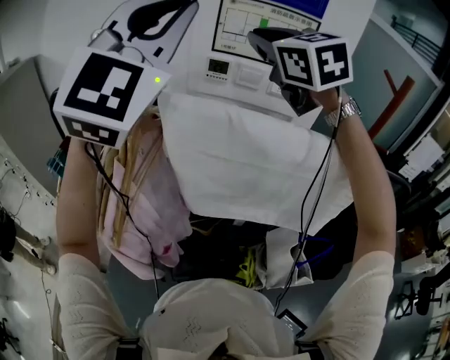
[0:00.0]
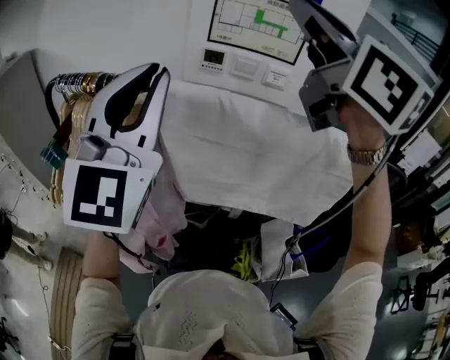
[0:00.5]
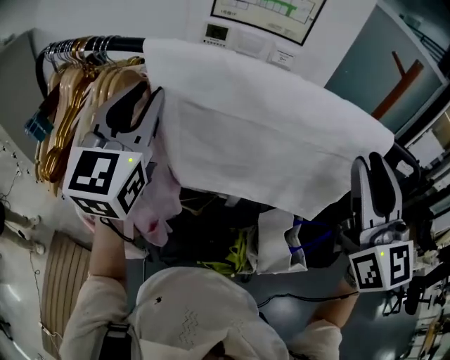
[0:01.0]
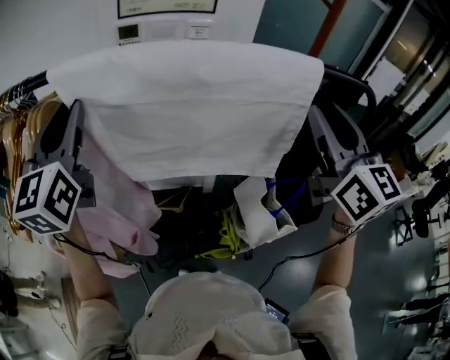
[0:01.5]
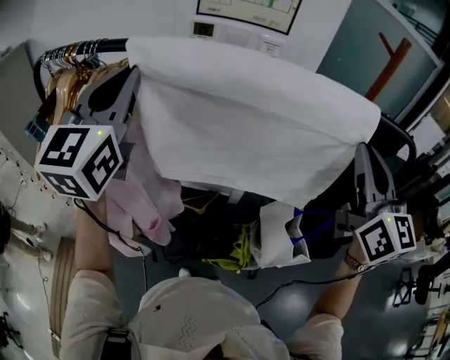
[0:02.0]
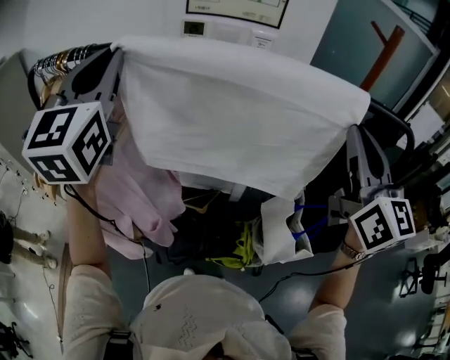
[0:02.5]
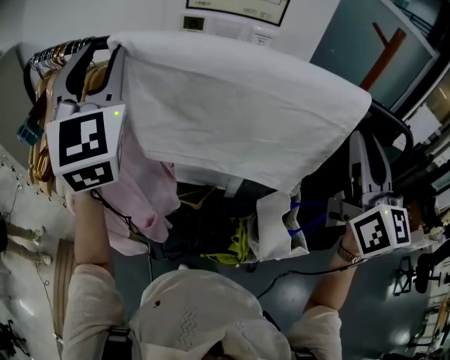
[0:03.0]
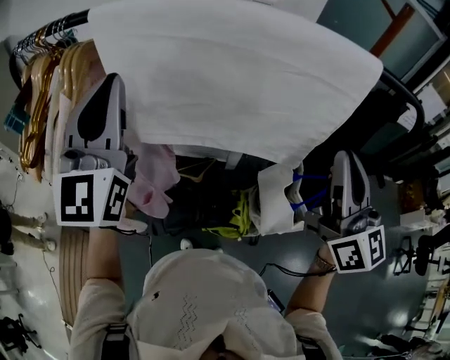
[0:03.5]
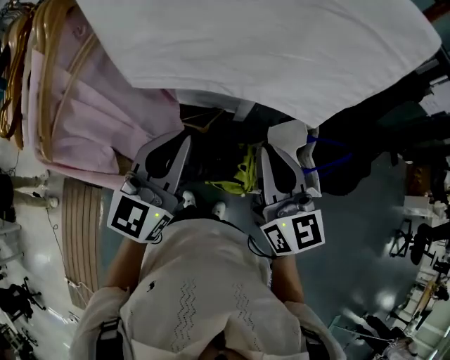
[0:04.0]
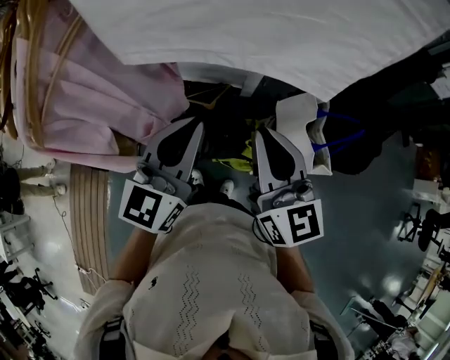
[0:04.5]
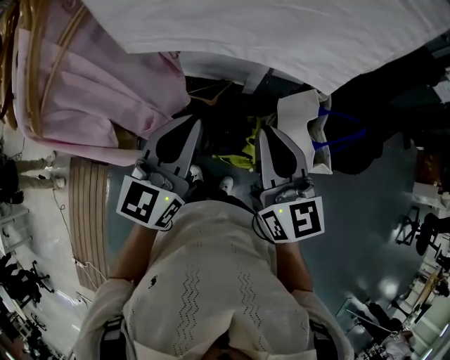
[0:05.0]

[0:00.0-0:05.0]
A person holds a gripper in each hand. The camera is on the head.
0:00.0 to 0:02.5: The right gripper shifts roughly 35 cm to the right, backward and downward, changes its angle by roughly 40 degrees, and opens, then closes once more, while the left gripper travels downward by roughly 15 cm, and swivels approximately 30 degrees.
0:02.5 to 0:05.0: The right gripper moves downward, roughly 30 cm, and turns by approximately 20 degrees; the left gripper shifts some 40 cm downward, to the right and backward, turns by approximately 40 degrees, and opens, then closes once more.

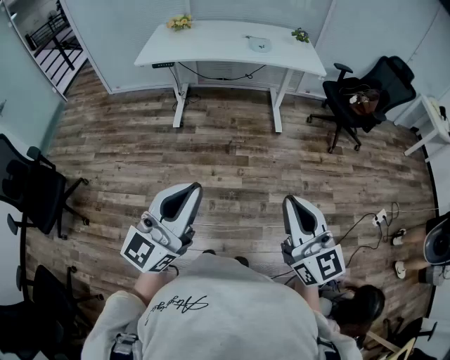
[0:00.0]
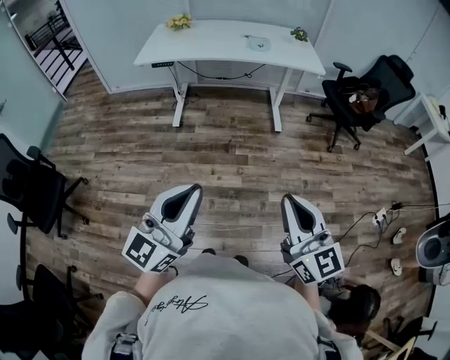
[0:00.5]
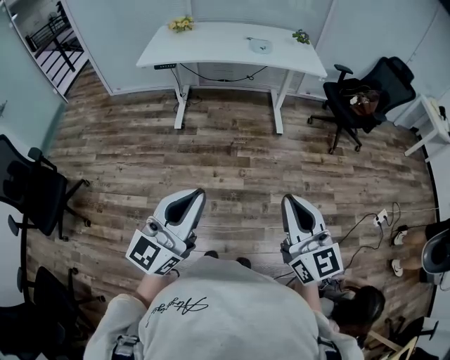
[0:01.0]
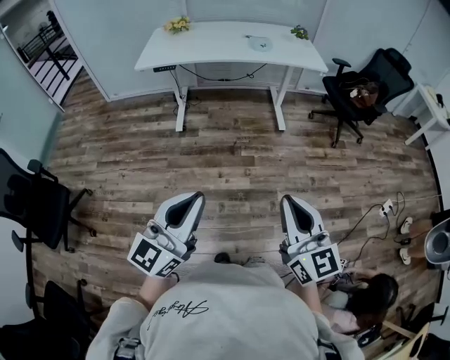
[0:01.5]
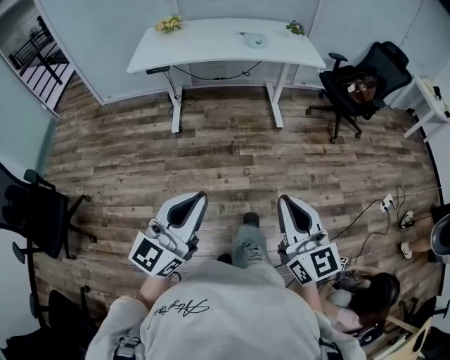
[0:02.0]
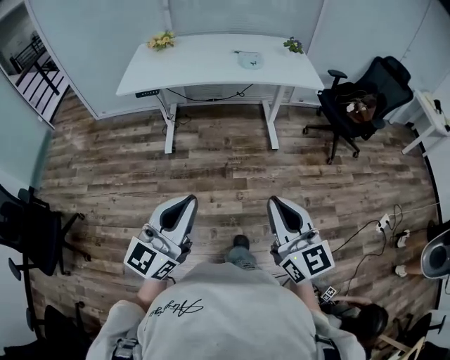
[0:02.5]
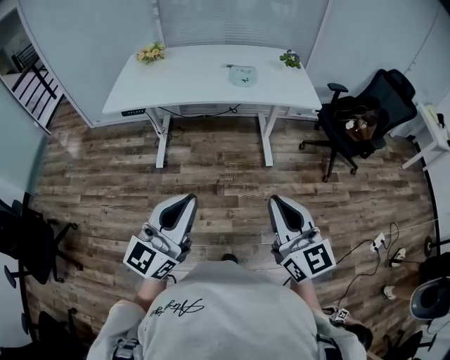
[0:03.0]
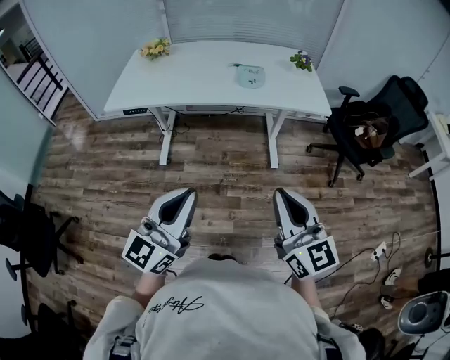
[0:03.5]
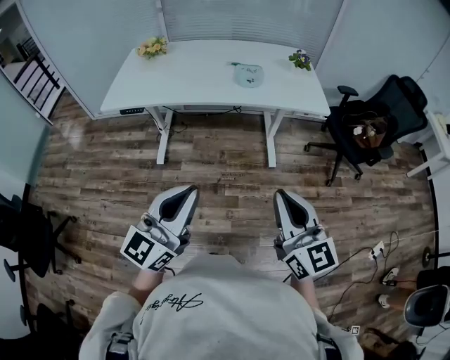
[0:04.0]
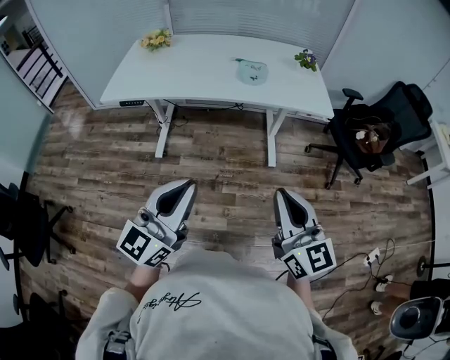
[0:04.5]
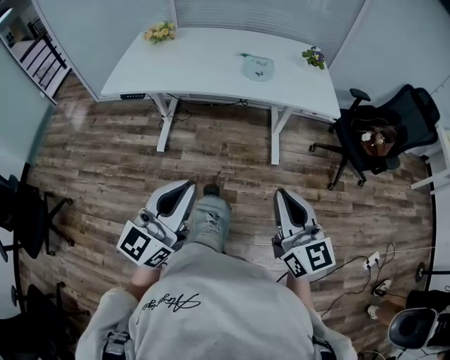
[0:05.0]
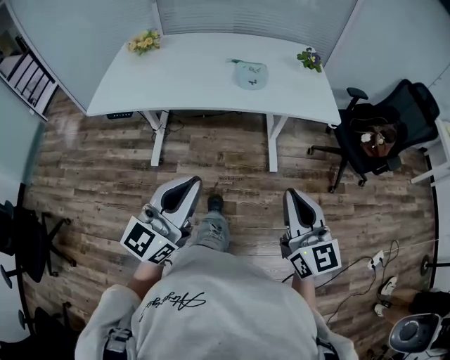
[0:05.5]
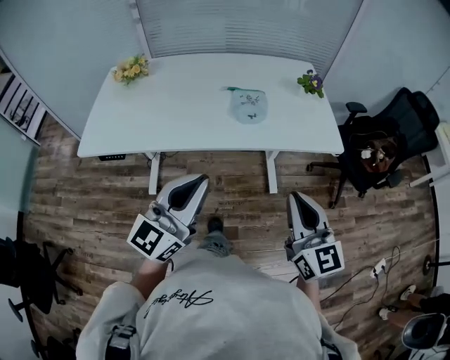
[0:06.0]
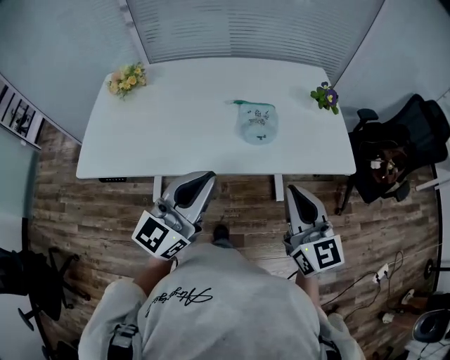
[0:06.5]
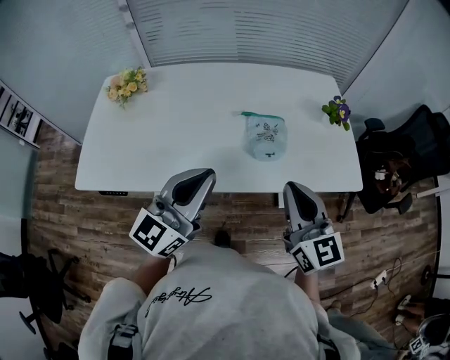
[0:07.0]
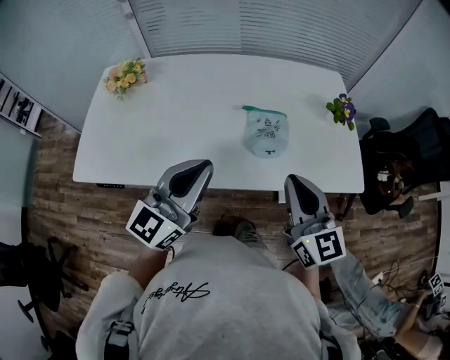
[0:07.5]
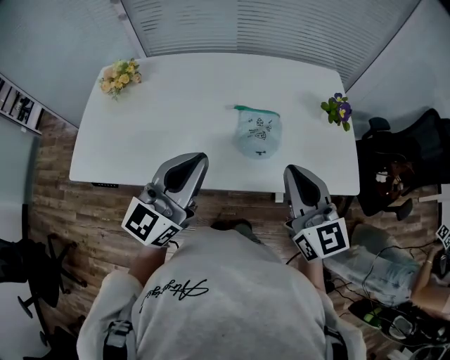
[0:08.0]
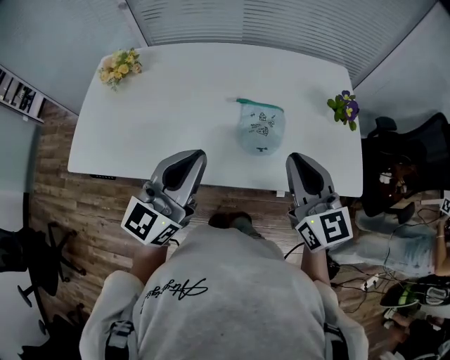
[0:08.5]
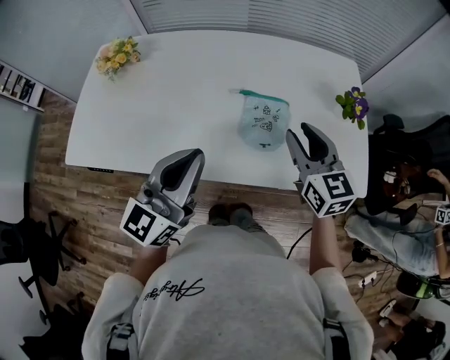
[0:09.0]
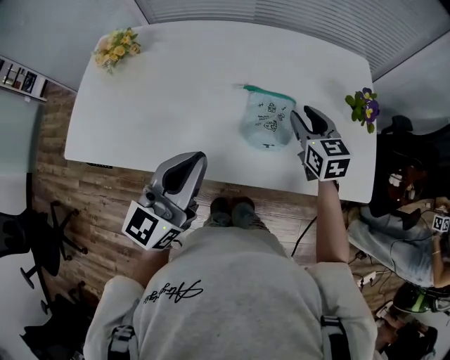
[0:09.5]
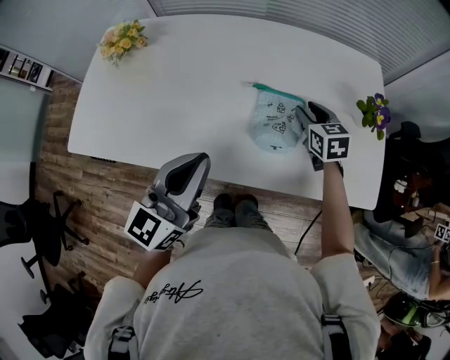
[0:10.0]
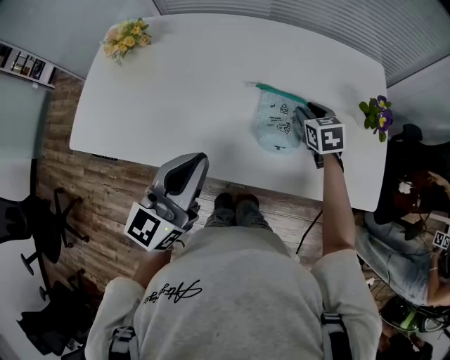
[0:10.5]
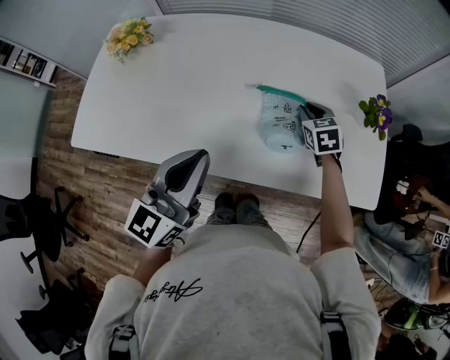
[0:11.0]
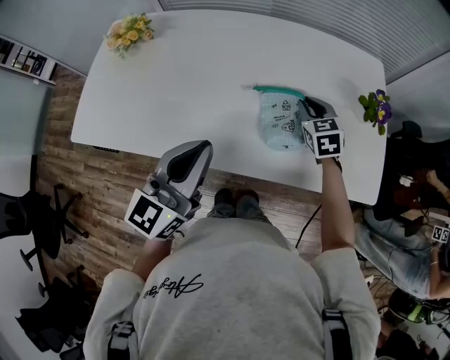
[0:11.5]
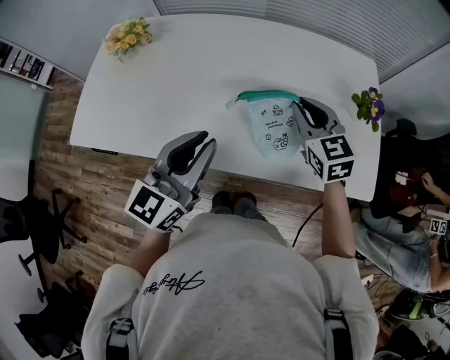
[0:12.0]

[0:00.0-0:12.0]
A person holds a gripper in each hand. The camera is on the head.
0:00.0 to 0:02.0: Both grippers move to the left, approximately 5 cm.
0:02.0 to 0:04.0: The grippers both shift forward by approximately 35 cm.
0:04.0 to 0:06.0: Both grippers travel together forward, some 25 cm.
0:06.0 to 0:08.0: Both grippers travel together forward, roughly 25 cm.
0:08.0 to 0:10.0: The right gripper goes some 30 cm forward and downward, tips its fingers downward by roughly 30 degrees, and opens its fingers, while the left gripper moves downward, about 5 cm.
0:10.0 to 0:12.0: The right gripper goes roughly 15 cm upward and backward, and closes.

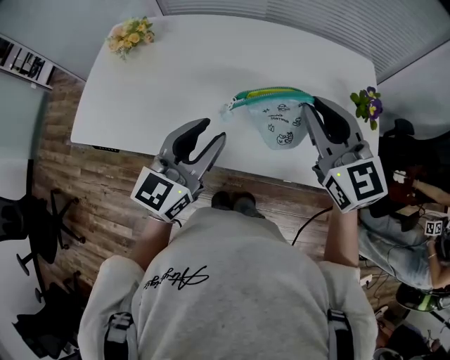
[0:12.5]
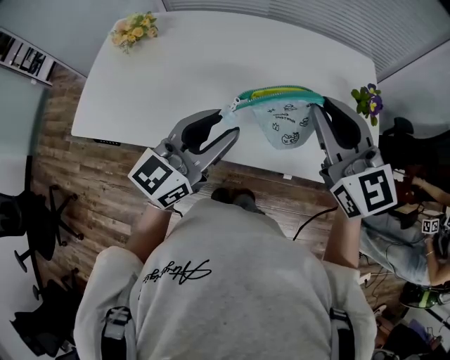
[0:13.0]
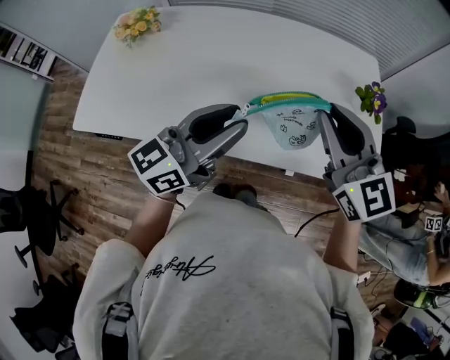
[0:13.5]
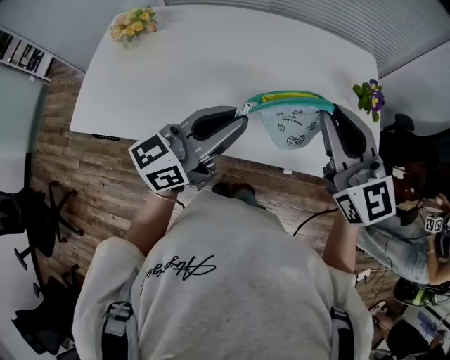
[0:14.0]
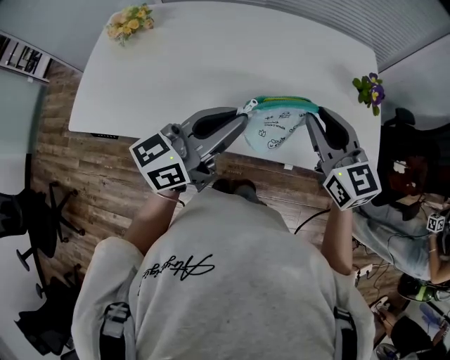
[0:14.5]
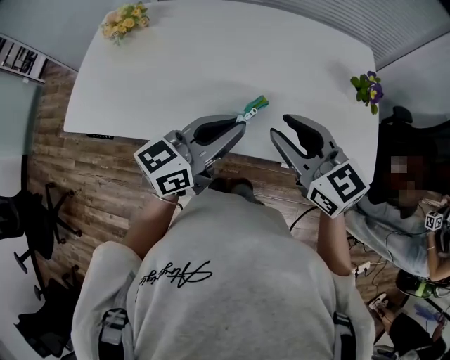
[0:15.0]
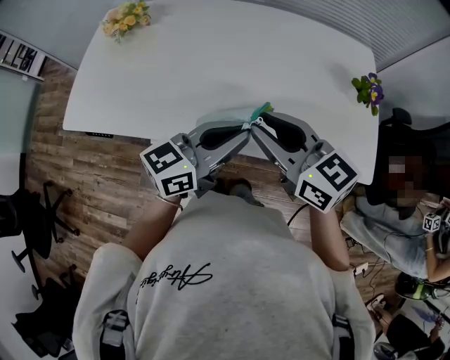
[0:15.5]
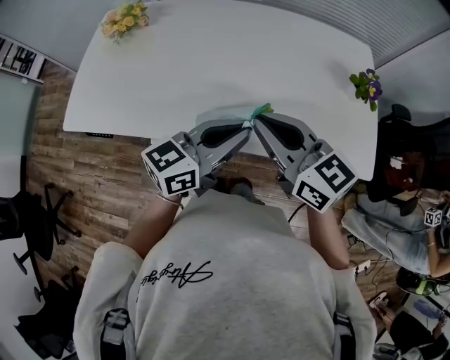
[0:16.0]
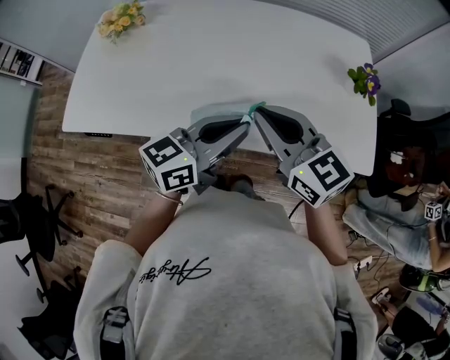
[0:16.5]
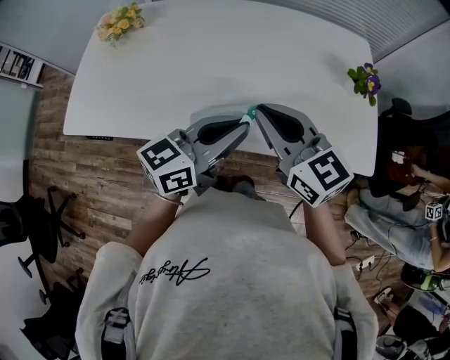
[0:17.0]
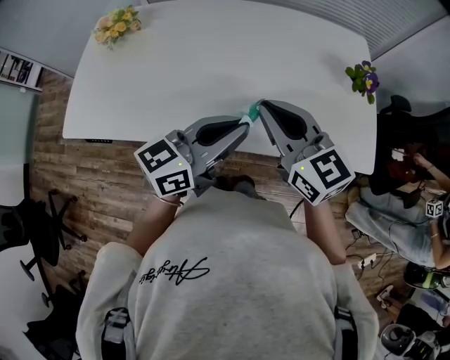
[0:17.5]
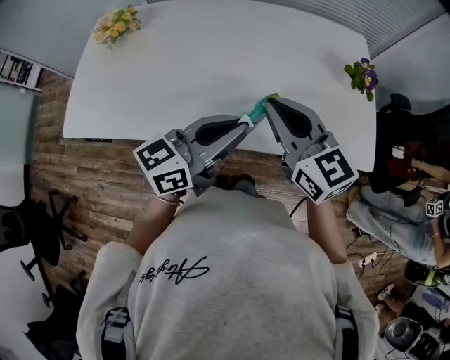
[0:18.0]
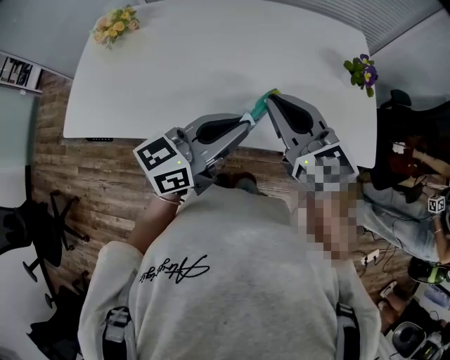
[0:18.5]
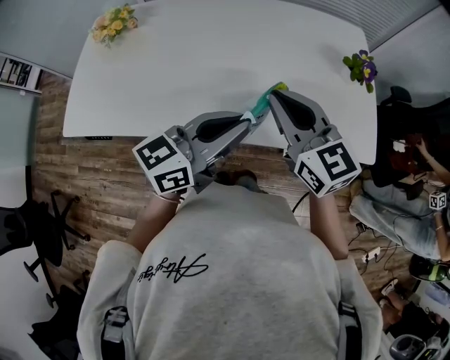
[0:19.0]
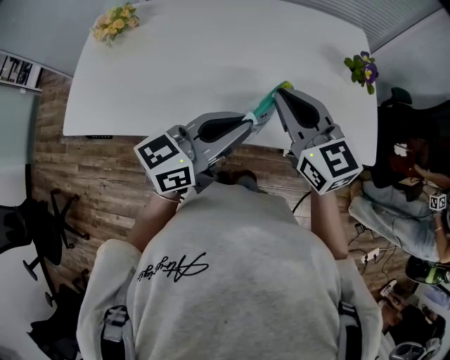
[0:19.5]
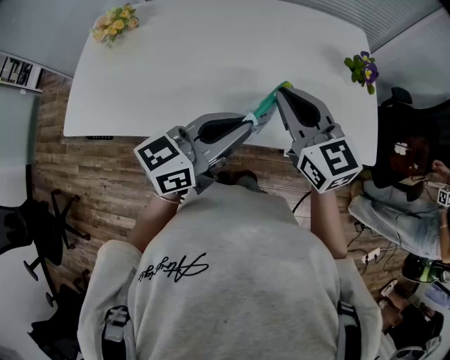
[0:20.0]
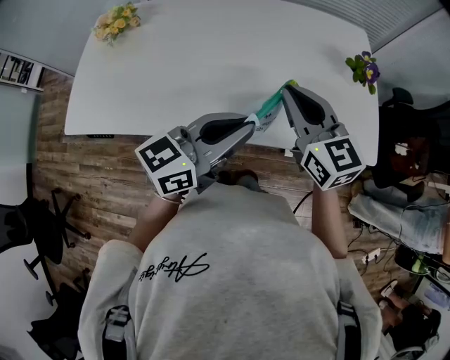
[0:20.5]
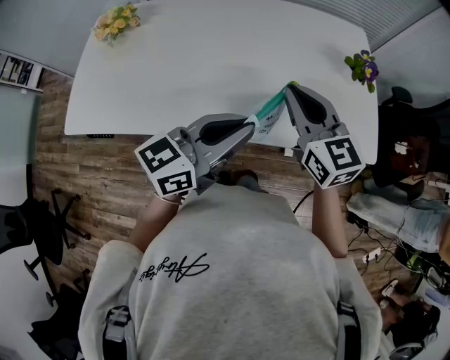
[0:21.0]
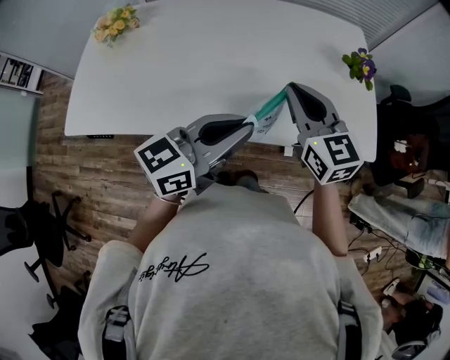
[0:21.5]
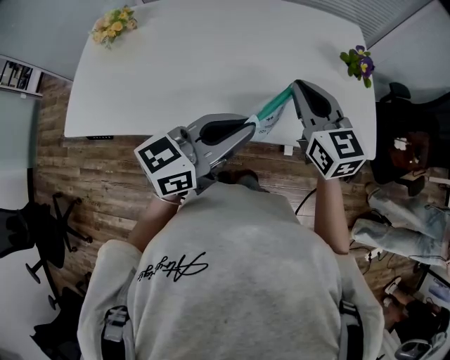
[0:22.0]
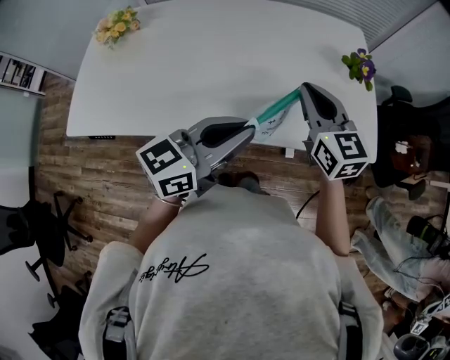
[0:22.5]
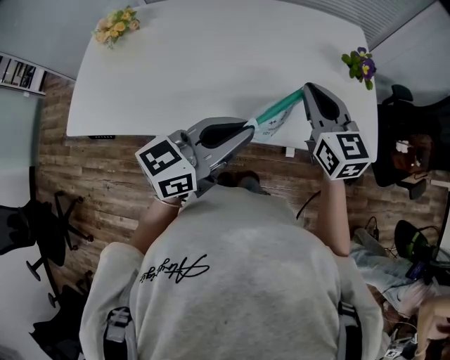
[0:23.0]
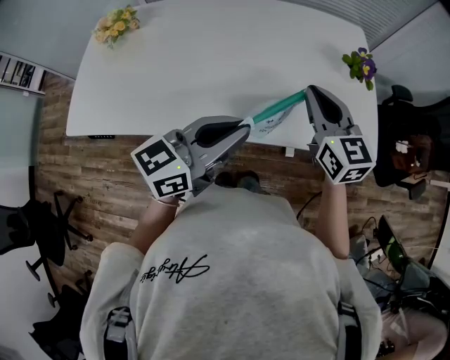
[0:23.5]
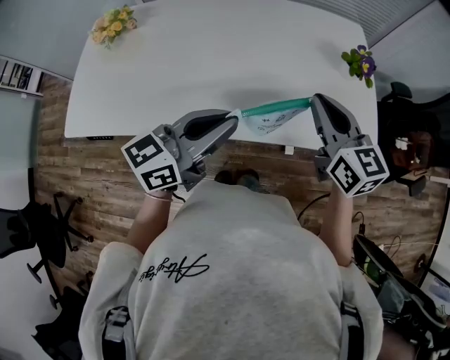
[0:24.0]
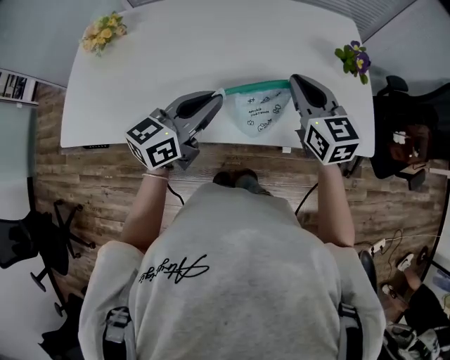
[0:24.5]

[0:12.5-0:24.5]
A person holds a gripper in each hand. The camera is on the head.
0:12.5 to 0:14.5: The right gripper heads downward, covering some 5 cm. The left gripper moves approximately 5 cm, changes its angle by roughly 30 degrees, and closes.
0:14.5 to 0:16.5: The left gripper shifts by some 5 cm; the right gripper is displaced to the left by some 10 cm.
0:16.5 to 0:18.5: The grippers stay close to where they were, moving slightly.
0:18.5 to 0:20.5: There are only small adjustments of the grippers.
0:20.5 to 0:22.5: The right gripper shifts by approximately 5 cm.
0:22.5 to 0:24.5: The left gripper goes about 10 cm to the left, forward and downward.
